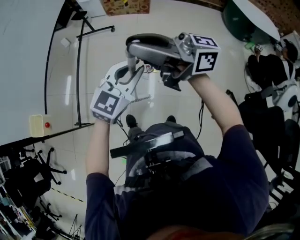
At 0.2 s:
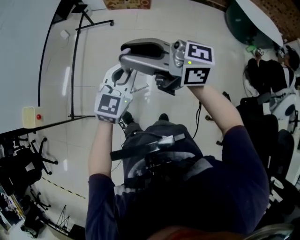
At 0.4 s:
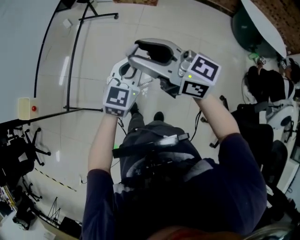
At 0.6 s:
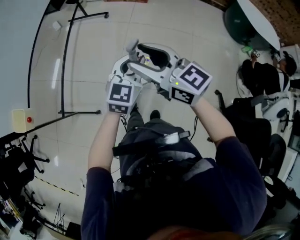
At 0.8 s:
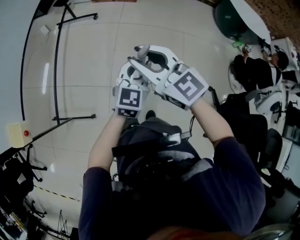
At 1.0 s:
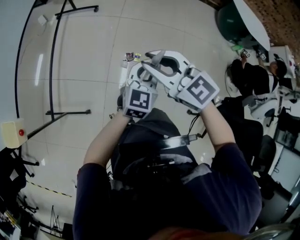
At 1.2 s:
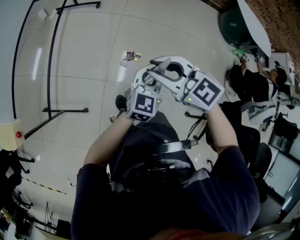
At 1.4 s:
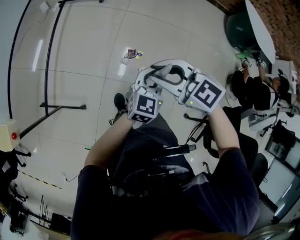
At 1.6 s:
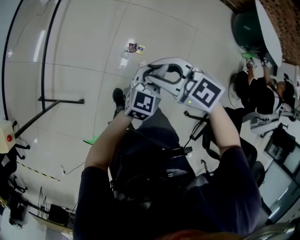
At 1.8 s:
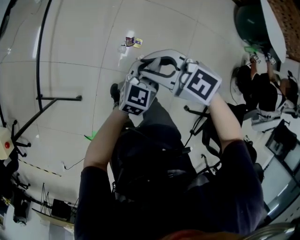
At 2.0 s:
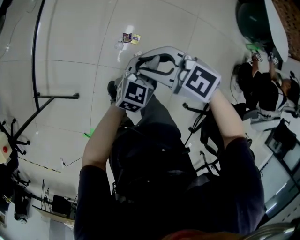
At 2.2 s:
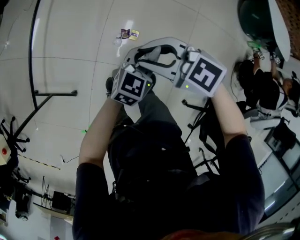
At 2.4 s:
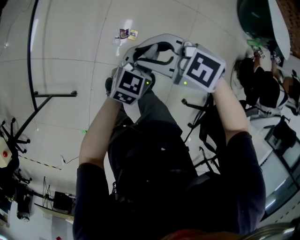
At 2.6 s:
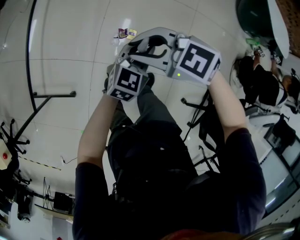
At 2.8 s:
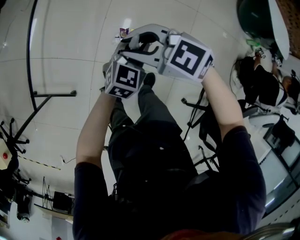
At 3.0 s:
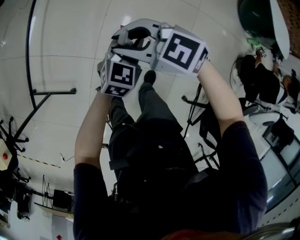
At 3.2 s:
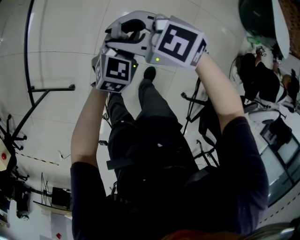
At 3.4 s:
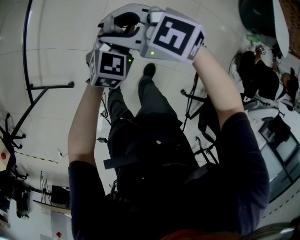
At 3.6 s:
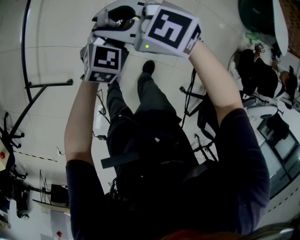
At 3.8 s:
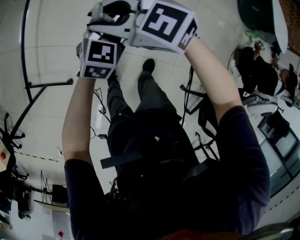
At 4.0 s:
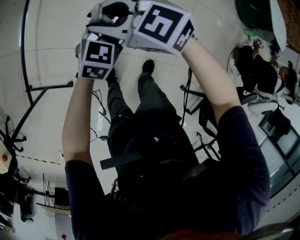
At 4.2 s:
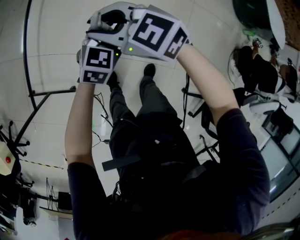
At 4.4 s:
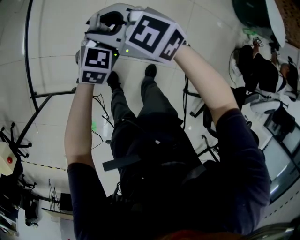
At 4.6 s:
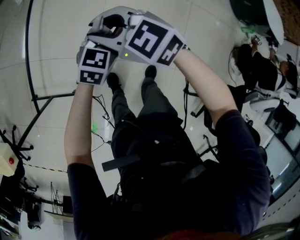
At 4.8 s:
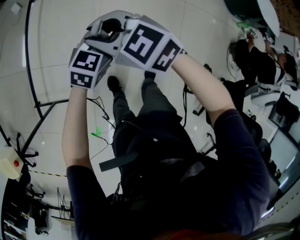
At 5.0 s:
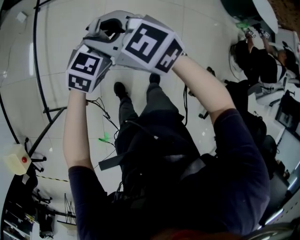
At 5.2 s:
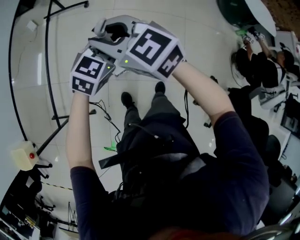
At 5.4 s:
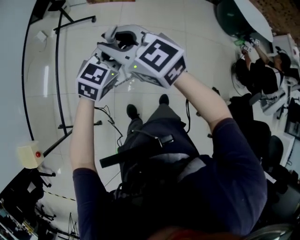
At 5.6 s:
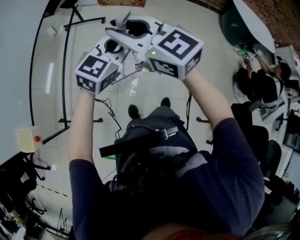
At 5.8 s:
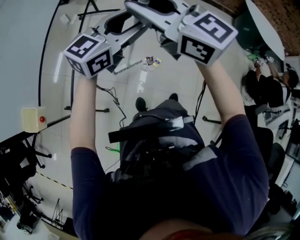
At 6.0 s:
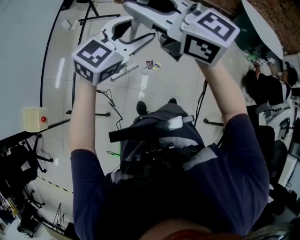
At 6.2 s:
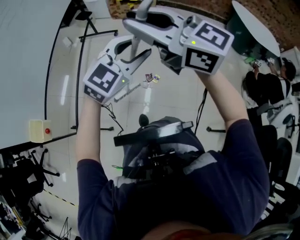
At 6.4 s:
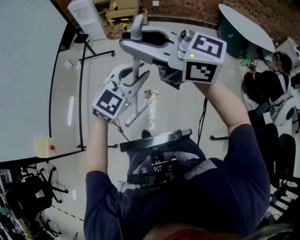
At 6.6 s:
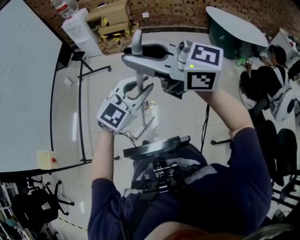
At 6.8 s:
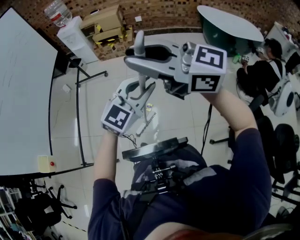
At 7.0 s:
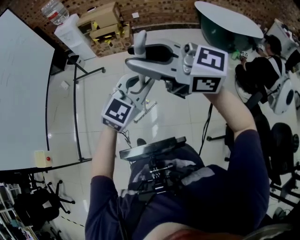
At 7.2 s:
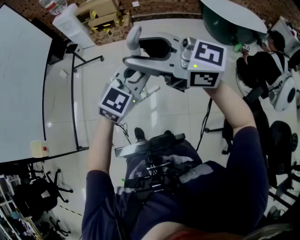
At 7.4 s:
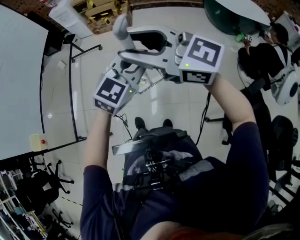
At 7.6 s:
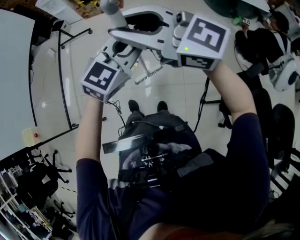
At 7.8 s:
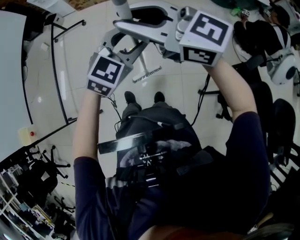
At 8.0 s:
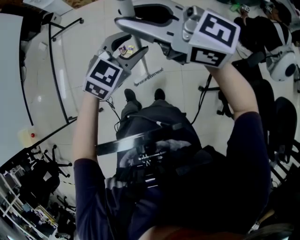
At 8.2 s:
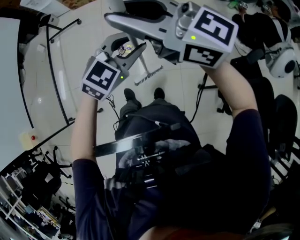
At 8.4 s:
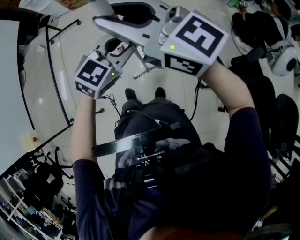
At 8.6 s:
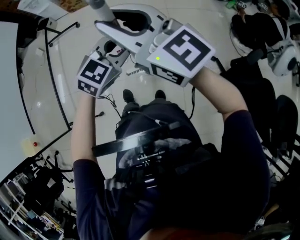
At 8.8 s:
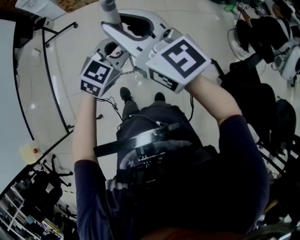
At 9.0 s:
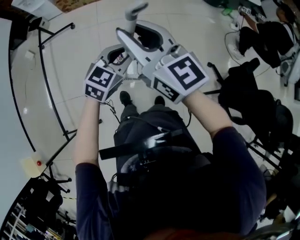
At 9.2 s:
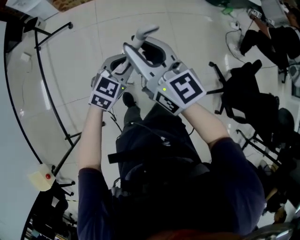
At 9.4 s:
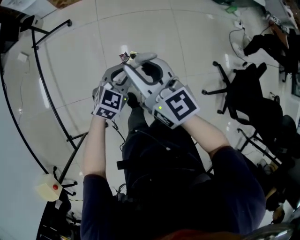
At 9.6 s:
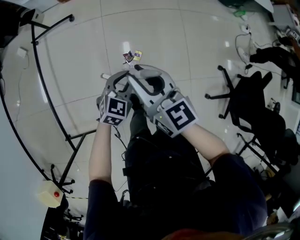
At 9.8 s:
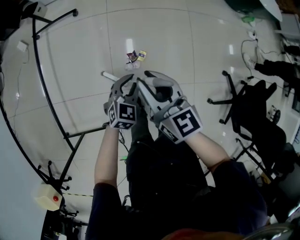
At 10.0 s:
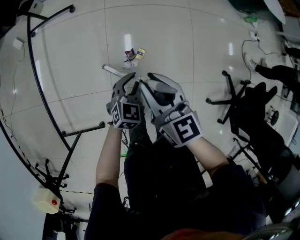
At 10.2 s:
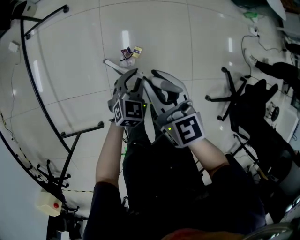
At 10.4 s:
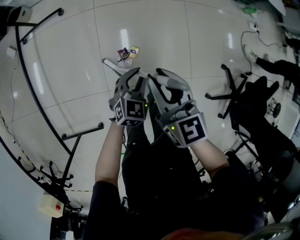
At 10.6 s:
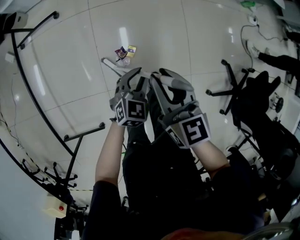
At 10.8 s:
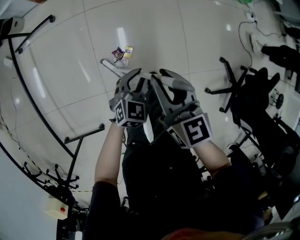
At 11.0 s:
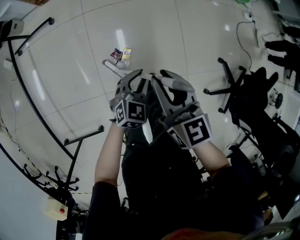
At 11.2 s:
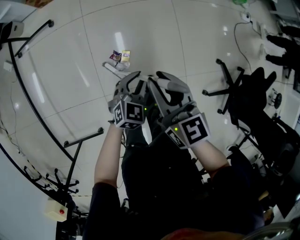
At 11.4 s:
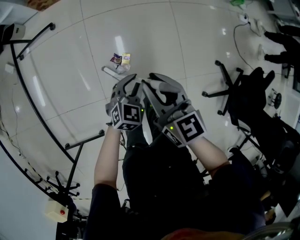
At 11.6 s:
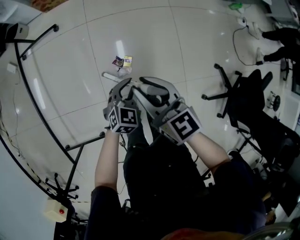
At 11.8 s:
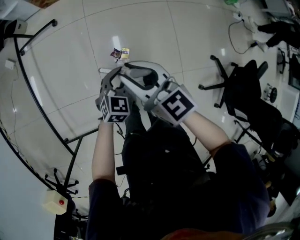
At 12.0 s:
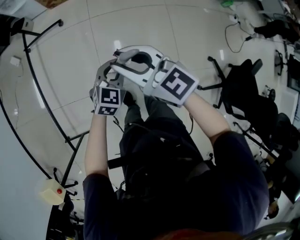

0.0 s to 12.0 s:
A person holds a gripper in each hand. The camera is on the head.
0.0 to 1.6 s: The right gripper goes approximately 30 cm downward, points its fingers roughly 50 degrees further downward, and opens, then closes again. The left gripper shifts about 25 cm downward, to the right and forward, and turns by approximately 30 degrees.
1.6 to 3.0 s: The left gripper shifts by roughly 15 cm. Meanwhile the right gripper changes place by approximately 15 cm.
3.0 to 4.4 s: The two grippers go approximately 10 cm to the left and forward.
4.4 to 6.0 s: The two grippers go roughly 40 cm upward. The right gripper rotates about 30 degrees; the left gripper swivels some 30 degrees, and opens its fingers.
6.0 to 7.6 s: Both grippers move to the right and backward, roughly 35 cm. The right gripper opens, then closes once more, while the left gripper closes up.
7.6 to 9.0 s: The right gripper heads forward, to the left and downward, covering roughly 20 cm, and changes its angle by approximately 40 degrees. Meanwhile the left gripper goes approximately 25 cm downward, to the left and forward, and opens, then closes once more.
9.0 to 10.4 s: Both grippers move downward, approximately 30 cm. The right gripper turns by roughly 20 degrees.
10.4 to 12.0 s: The right gripper moves upward and to the left, roughly 15 cm, and turns by roughly 30 degrees. The left gripper is displaced upward by some 15 cm.

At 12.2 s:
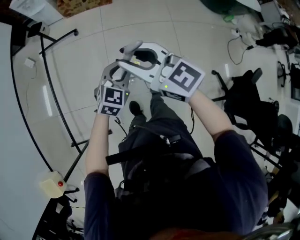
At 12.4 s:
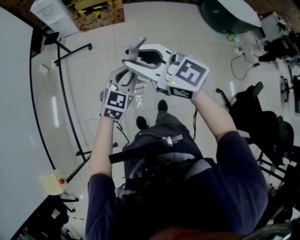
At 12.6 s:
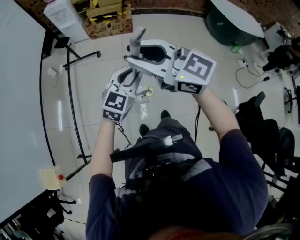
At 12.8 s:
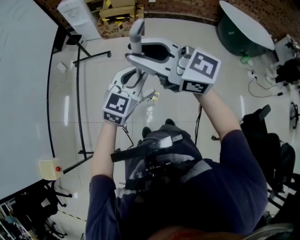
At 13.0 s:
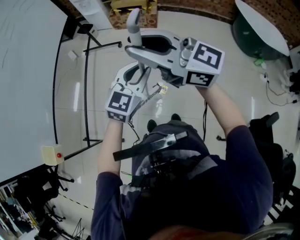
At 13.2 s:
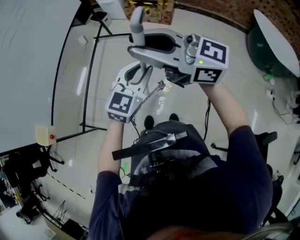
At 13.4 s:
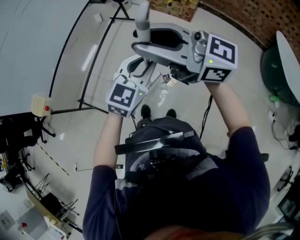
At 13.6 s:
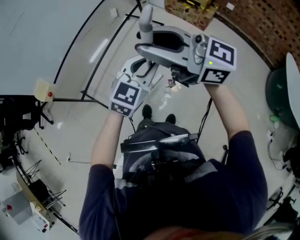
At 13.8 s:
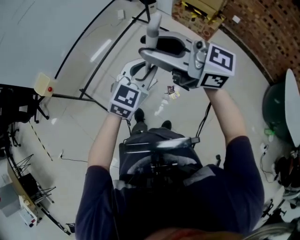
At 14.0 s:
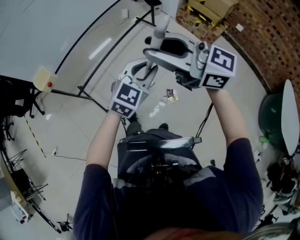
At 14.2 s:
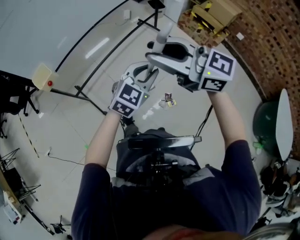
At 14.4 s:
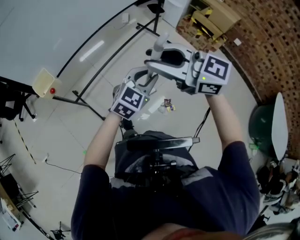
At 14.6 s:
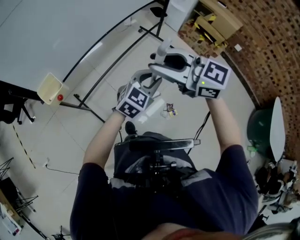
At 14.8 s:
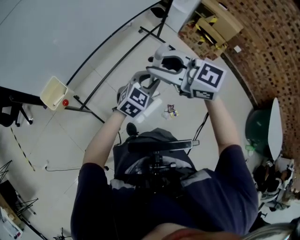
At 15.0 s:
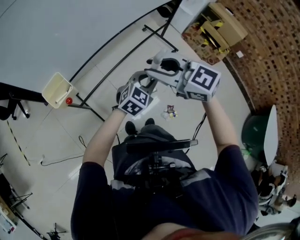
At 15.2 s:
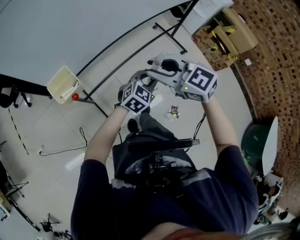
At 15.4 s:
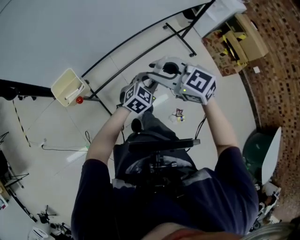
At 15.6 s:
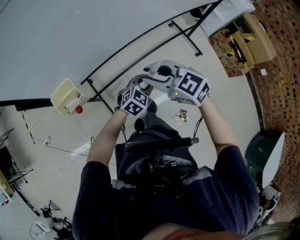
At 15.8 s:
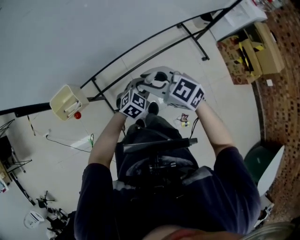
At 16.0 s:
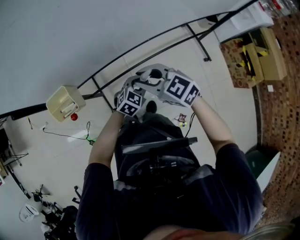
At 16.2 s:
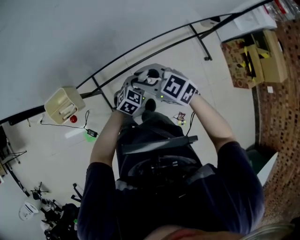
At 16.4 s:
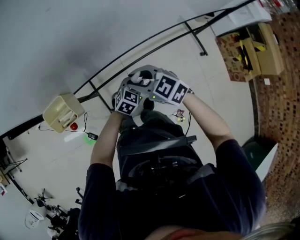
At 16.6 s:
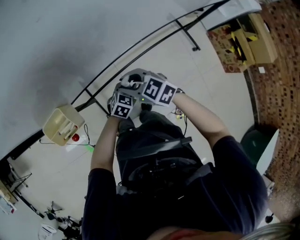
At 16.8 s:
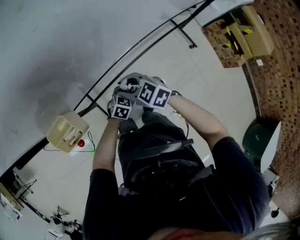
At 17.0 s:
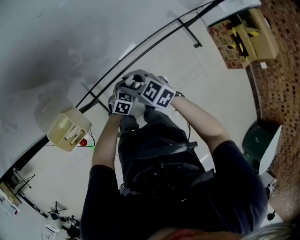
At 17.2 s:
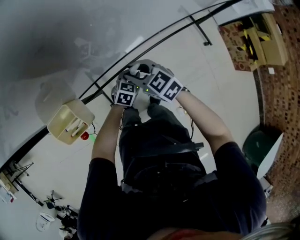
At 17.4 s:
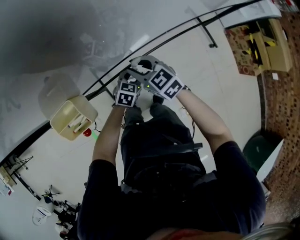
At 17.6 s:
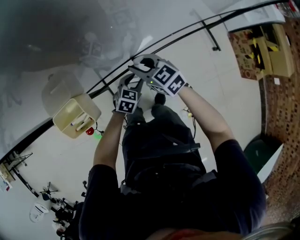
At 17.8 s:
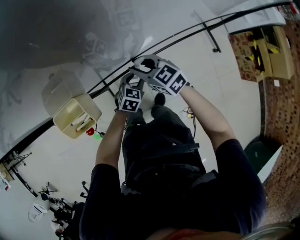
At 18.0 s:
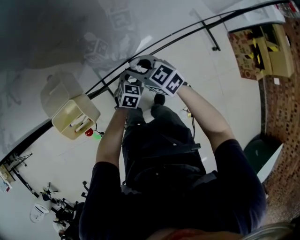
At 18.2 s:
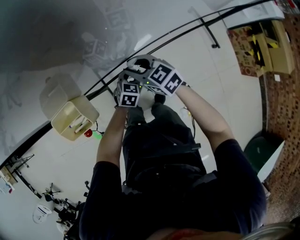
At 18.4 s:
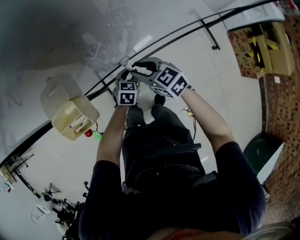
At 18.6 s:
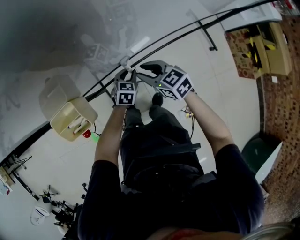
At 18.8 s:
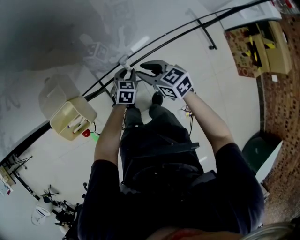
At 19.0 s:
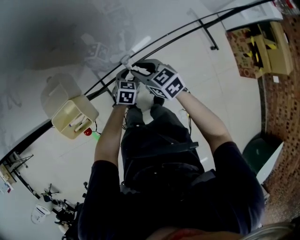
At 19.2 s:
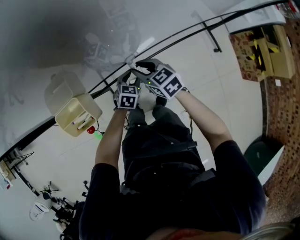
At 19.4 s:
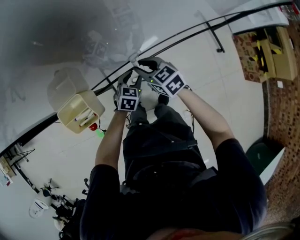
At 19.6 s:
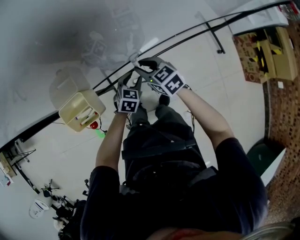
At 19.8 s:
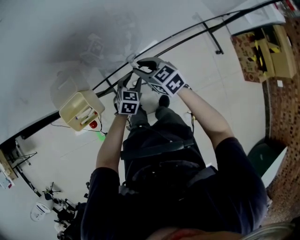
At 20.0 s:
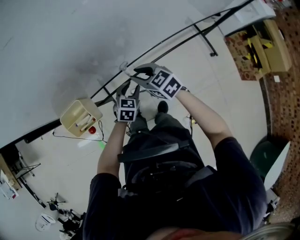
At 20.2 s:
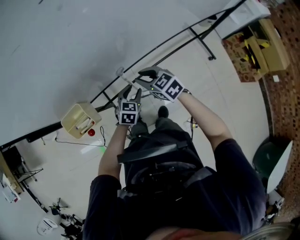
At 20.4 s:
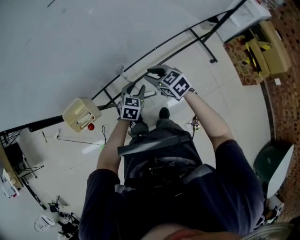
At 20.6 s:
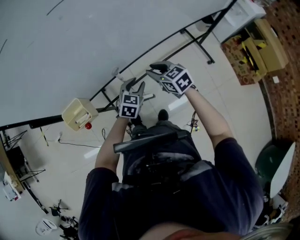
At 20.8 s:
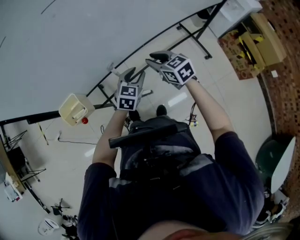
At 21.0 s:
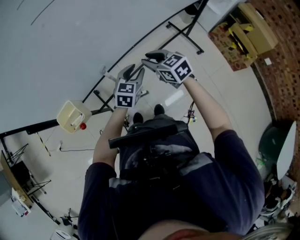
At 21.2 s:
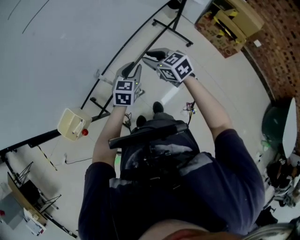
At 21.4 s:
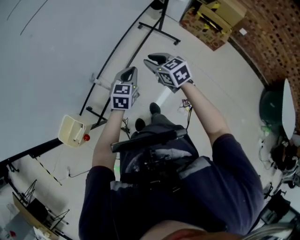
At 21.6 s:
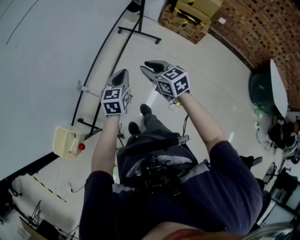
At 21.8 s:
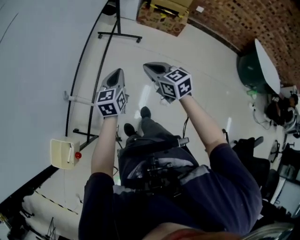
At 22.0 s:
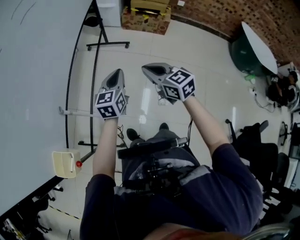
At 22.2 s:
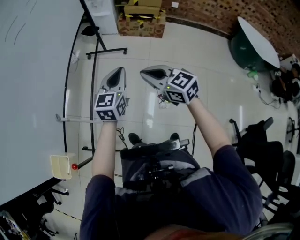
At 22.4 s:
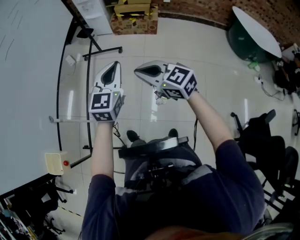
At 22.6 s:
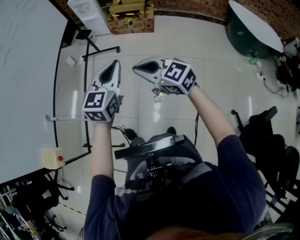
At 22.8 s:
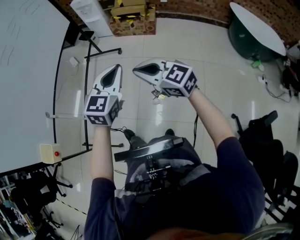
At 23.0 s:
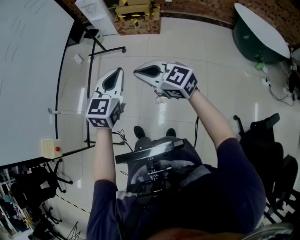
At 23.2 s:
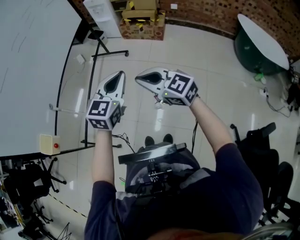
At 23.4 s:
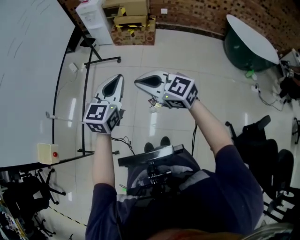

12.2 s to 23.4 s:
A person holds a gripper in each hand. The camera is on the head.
12.2 to 13.8 s: Both grippers travel together upward, approximately 20 cm. The left gripper changes its angle by some 40 degrees; the right gripper rotates roughly 60 degrees.
13.8 to 15.4 s: The right gripper moves to the left, forward and downward, about 50 cm, and tips its fingers downward by about 40 degrees, while the left gripper is displaced forward, to the left and downward by roughly 40 cm.
15.4 to 17.0 s: The left gripper moves downward, forward and to the left, about 25 cm, and swivels roughly 30 degrees; the right gripper travels downward and forward by some 25 cm.
17.0 to 18.6 s: The left gripper heads forward, covering about 5 cm.
18.6 to 20.2 s: The left gripper heads upward and backward, covering about 10 cm.
20.2 to 21.8 s: The left gripper ends up approximately 25 cm from where it was, changes its angle by roughly 40 degrees, and closes its fingers. The right gripper moves roughly 30 cm, swivels approximately 60 degrees, and closes.
21.8 to 23.4 s: The right gripper goes approximately 35 cm backward, to the right and upward, and turns by about 20 degrees, while the left gripper is displaced to the right, backward and upward by some 40 cm, and turns by approximately 30 degrees.
